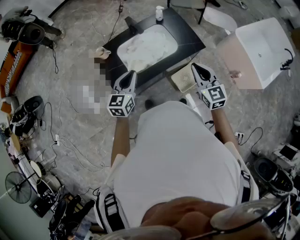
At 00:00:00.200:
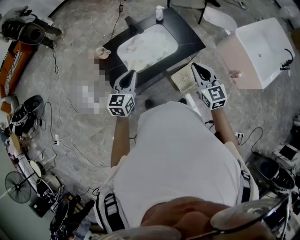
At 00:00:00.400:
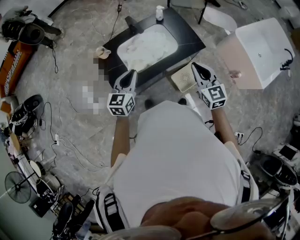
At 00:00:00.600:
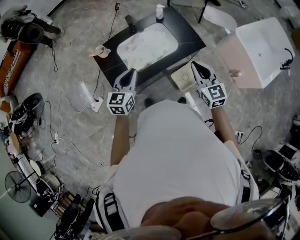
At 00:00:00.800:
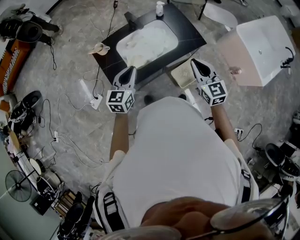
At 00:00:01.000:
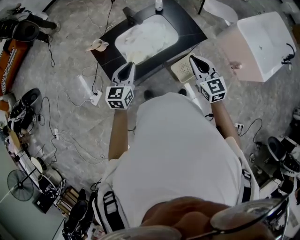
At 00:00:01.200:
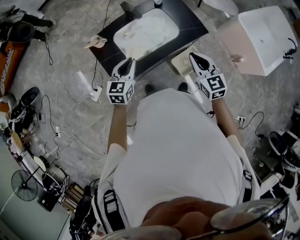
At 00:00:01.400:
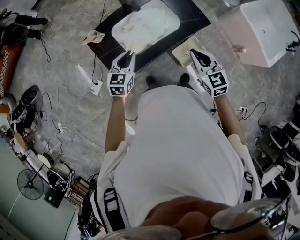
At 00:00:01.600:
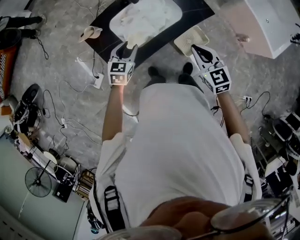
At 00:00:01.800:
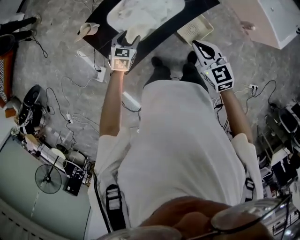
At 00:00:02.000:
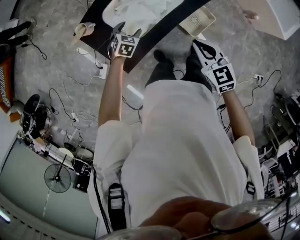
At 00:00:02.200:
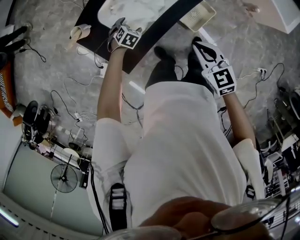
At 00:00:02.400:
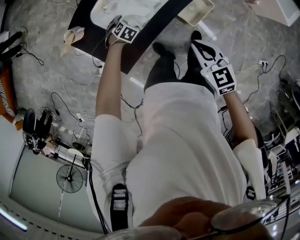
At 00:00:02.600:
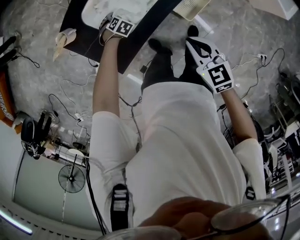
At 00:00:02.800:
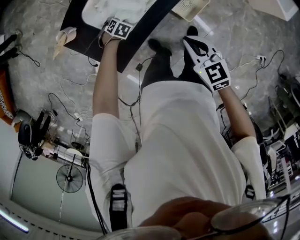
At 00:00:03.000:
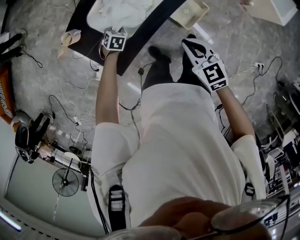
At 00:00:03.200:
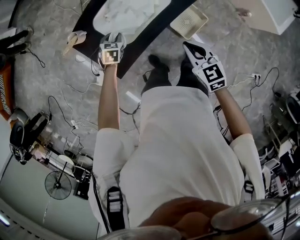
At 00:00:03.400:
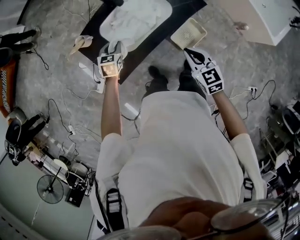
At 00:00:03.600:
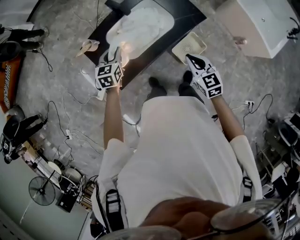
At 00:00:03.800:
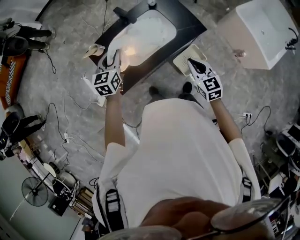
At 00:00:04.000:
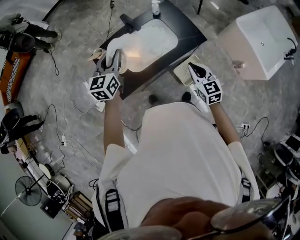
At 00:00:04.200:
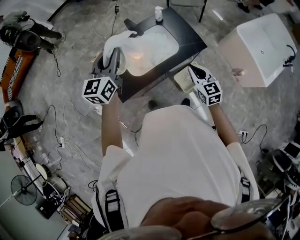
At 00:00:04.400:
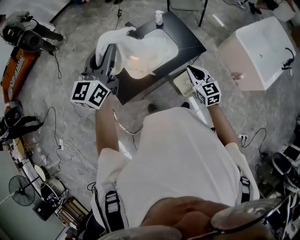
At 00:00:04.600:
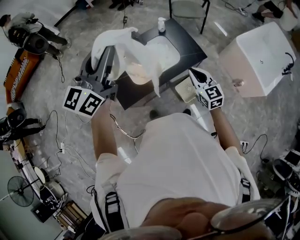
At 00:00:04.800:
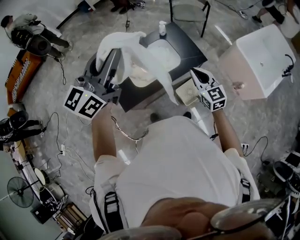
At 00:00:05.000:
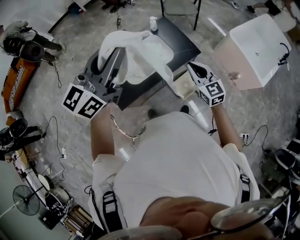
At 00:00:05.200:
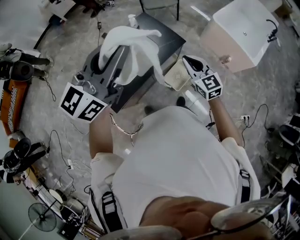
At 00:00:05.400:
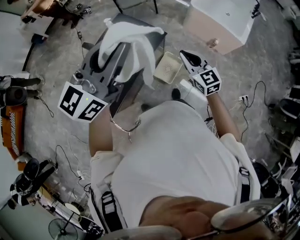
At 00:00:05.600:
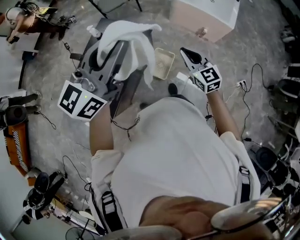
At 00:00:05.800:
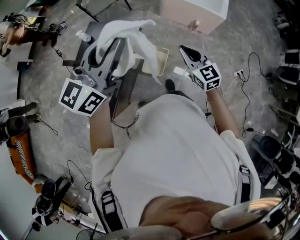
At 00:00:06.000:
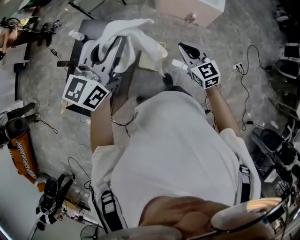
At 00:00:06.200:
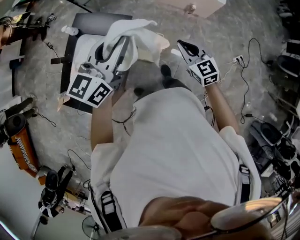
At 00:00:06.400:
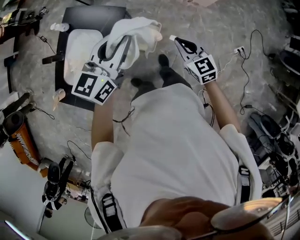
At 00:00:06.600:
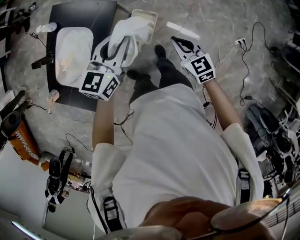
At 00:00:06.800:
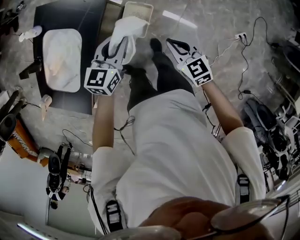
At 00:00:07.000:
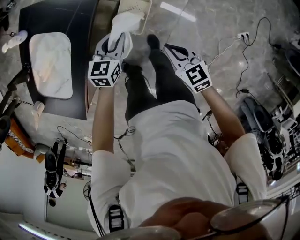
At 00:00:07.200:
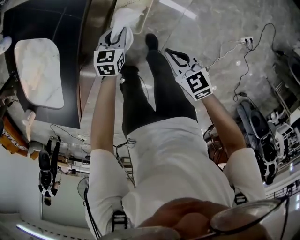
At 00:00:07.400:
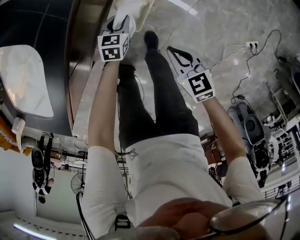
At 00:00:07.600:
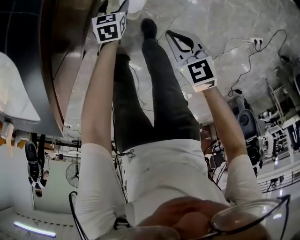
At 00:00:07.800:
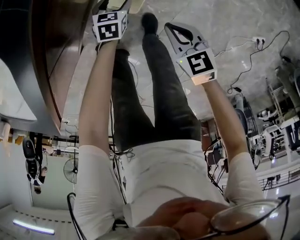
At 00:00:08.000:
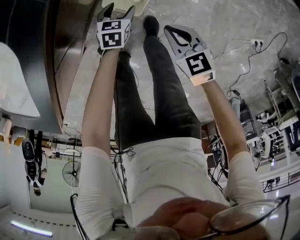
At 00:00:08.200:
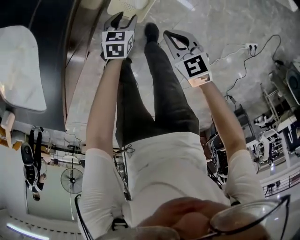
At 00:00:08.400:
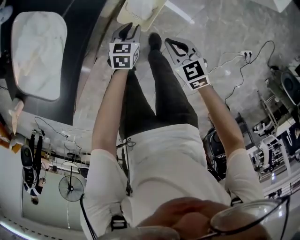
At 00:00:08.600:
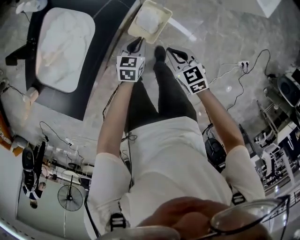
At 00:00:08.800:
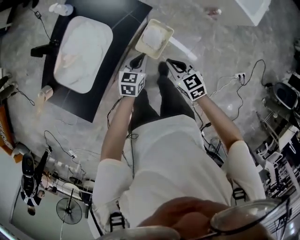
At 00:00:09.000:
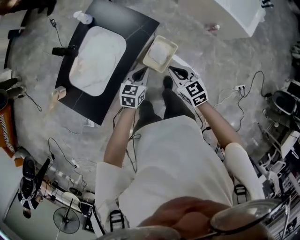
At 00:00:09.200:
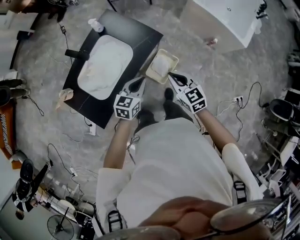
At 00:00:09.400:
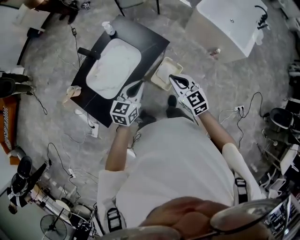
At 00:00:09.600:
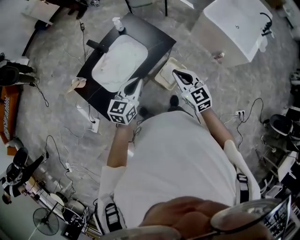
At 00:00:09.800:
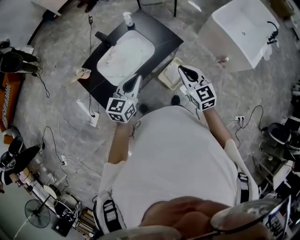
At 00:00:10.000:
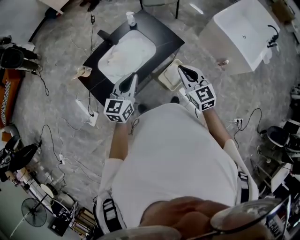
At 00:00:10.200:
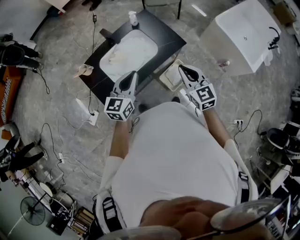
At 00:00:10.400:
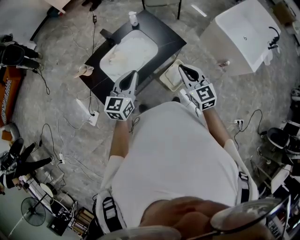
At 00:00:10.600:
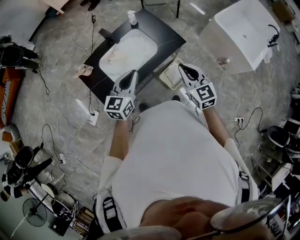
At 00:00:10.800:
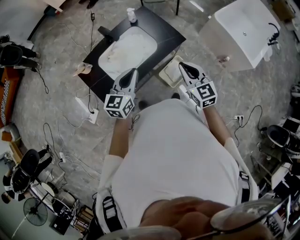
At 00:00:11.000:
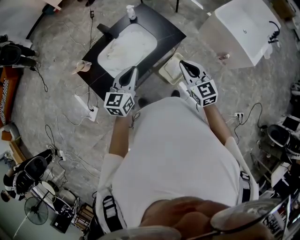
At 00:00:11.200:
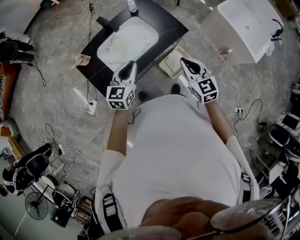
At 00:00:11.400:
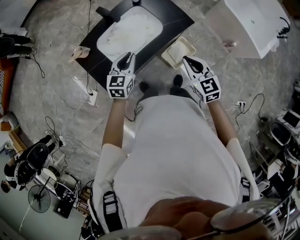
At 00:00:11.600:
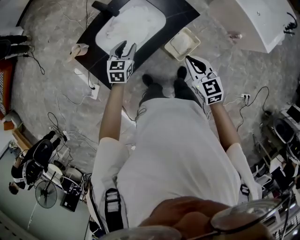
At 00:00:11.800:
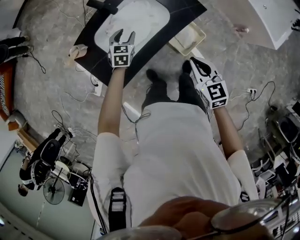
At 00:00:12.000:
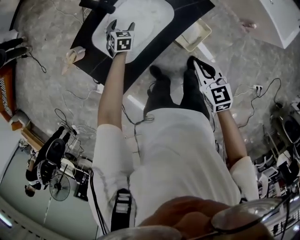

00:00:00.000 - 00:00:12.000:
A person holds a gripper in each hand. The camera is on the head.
00:00:00.000 - 00:00:01.600: The left gripper is displaced downward and forward by roughly 15 cm, and turns by about 20 degrees. The right gripper moves downward and to the left, approximately 10 cm.
00:00:01.600 - 00:00:03.000: The left gripper goes some 25 cm downward, tips its fingers downward by approximately 30 degrees, and opens, then closes once more. The right gripper moves downward, some 10 cm.
00:00:03.000 - 00:00:04.400: The right gripper moves upward and to the right, approximately 15 cm; the left gripper is displaced upward by roughly 60 cm, and angles its fingers upward, by about 70 degrees.
00:00:04.400 - 00:00:06.000: The left gripper reaches about 10 cm upward, then returns, and swivels approximately 50 degrees; the right gripper goes upward and returns, some 10 cm each way, and changes its angle by some 30 degrees.
00:00:06.000 - 00:00:07.600: The left gripper is displaced downward by about 1 m, points its fingers approximately 60 degrees further downward, and opens; the right gripper goes approximately 60 cm downward, and rotates approximately 40 degrees.
00:00:07.600 - 00:00:09.000: Both grippers travel together upward, roughly 40 cm. The left gripper turns by roughly 20 degrees, and closes its fingers.
00:00:09.000 - 00:00:10.400: The grippers both shift upward and to the left by about 30 cm. The left gripper changes its angle by approximately 30 degrees. Meanwhile the right gripper swivels some 20 degrees.
00:00:10.400 - 00:00:12.000: The right gripper is displaced downward by about 20 cm, and turns by some 20 degrees; the left gripper heads downward and forward, covering some 50 cm, points its fingers some 40 degrees further downward, and opens.

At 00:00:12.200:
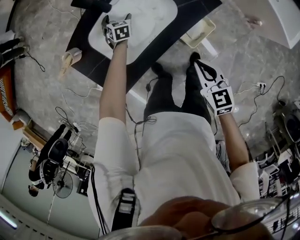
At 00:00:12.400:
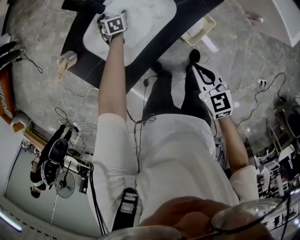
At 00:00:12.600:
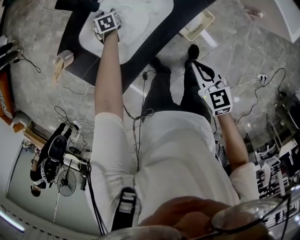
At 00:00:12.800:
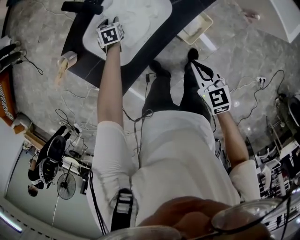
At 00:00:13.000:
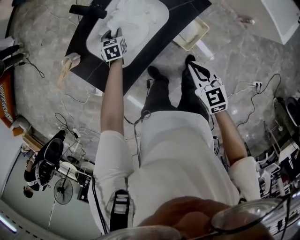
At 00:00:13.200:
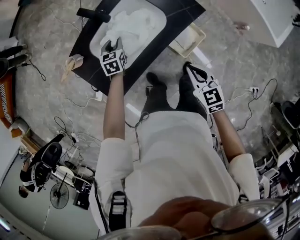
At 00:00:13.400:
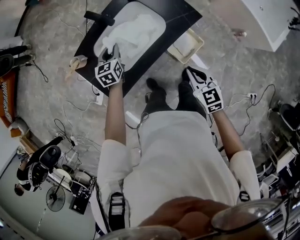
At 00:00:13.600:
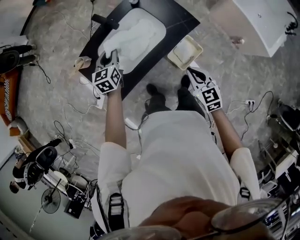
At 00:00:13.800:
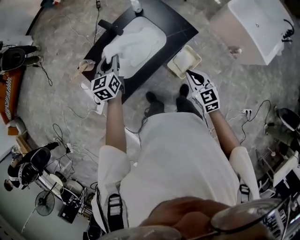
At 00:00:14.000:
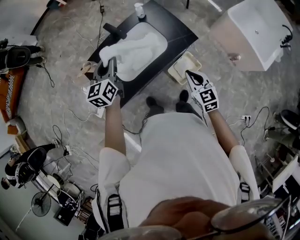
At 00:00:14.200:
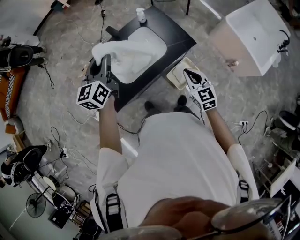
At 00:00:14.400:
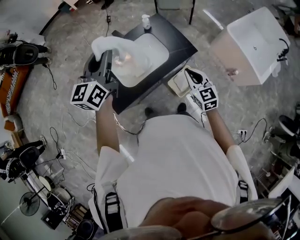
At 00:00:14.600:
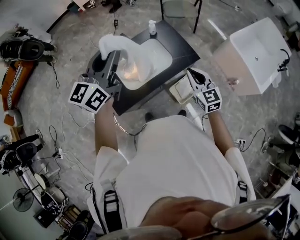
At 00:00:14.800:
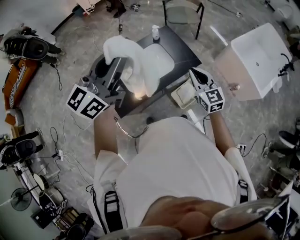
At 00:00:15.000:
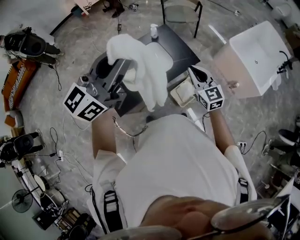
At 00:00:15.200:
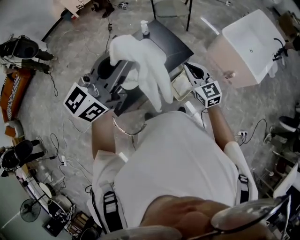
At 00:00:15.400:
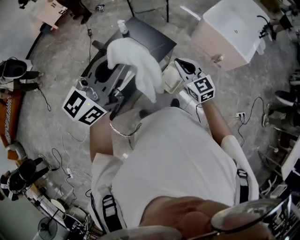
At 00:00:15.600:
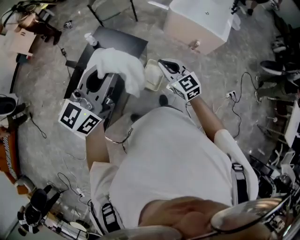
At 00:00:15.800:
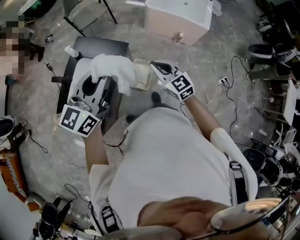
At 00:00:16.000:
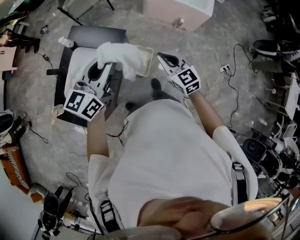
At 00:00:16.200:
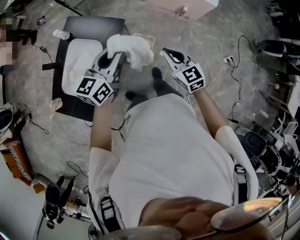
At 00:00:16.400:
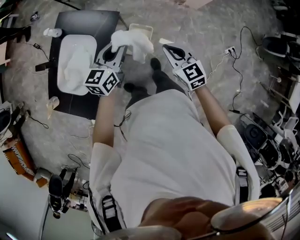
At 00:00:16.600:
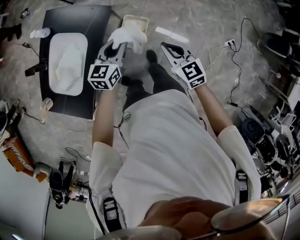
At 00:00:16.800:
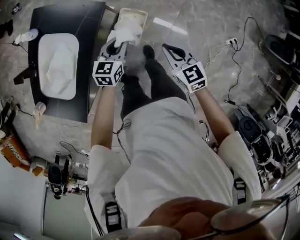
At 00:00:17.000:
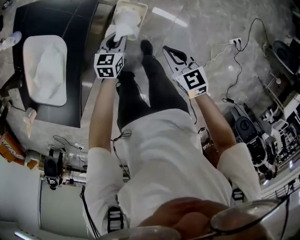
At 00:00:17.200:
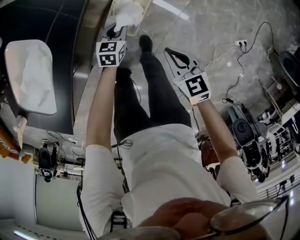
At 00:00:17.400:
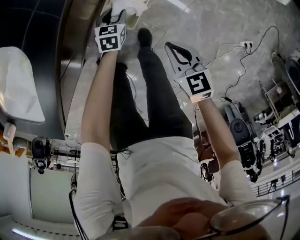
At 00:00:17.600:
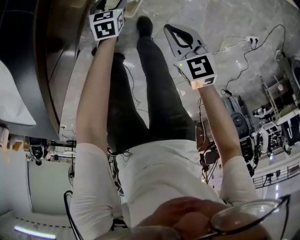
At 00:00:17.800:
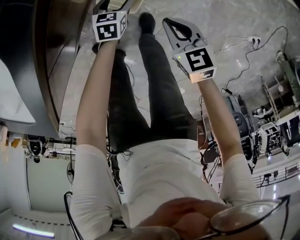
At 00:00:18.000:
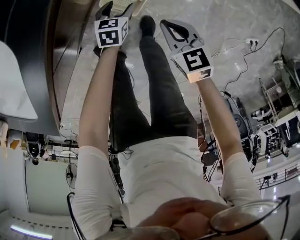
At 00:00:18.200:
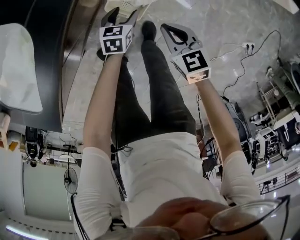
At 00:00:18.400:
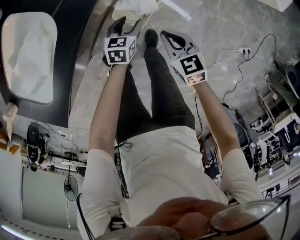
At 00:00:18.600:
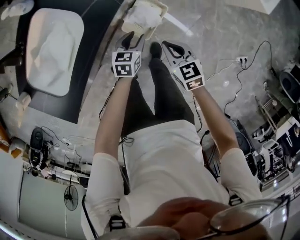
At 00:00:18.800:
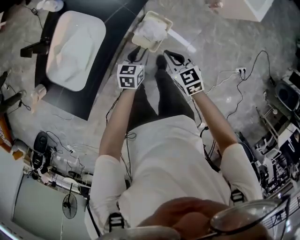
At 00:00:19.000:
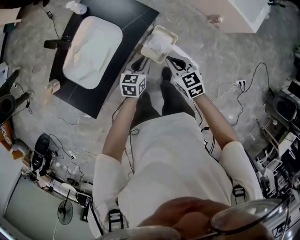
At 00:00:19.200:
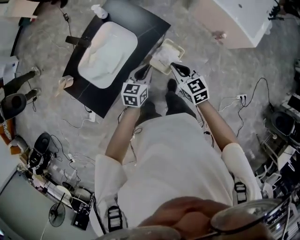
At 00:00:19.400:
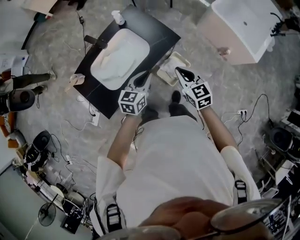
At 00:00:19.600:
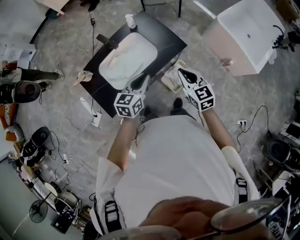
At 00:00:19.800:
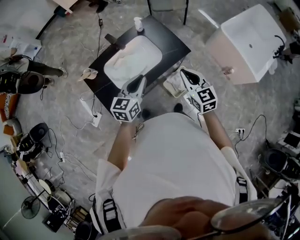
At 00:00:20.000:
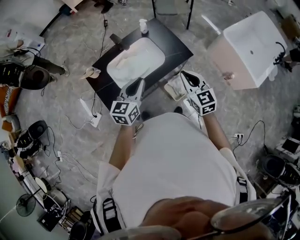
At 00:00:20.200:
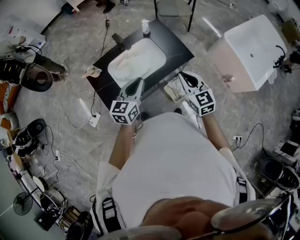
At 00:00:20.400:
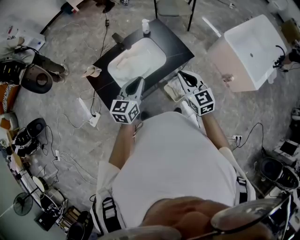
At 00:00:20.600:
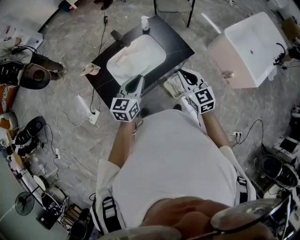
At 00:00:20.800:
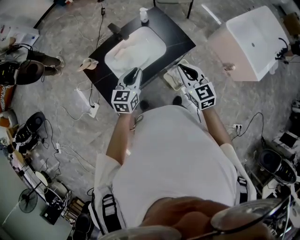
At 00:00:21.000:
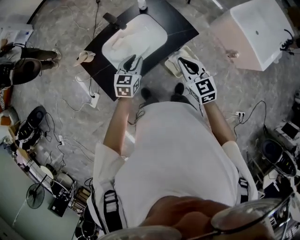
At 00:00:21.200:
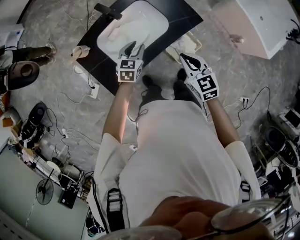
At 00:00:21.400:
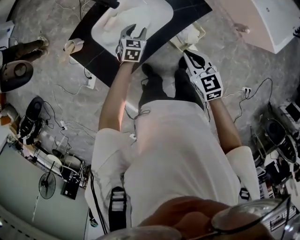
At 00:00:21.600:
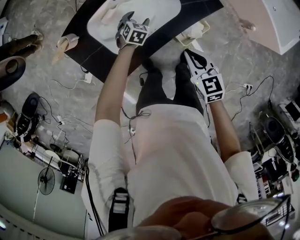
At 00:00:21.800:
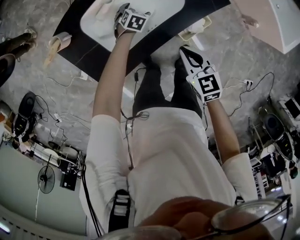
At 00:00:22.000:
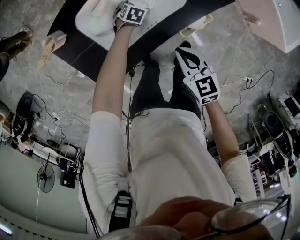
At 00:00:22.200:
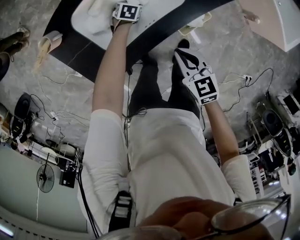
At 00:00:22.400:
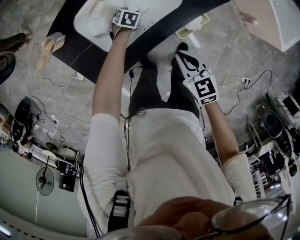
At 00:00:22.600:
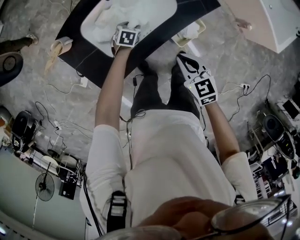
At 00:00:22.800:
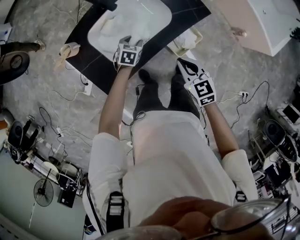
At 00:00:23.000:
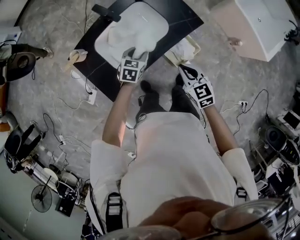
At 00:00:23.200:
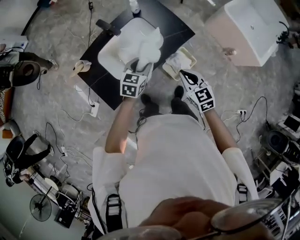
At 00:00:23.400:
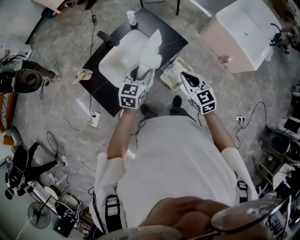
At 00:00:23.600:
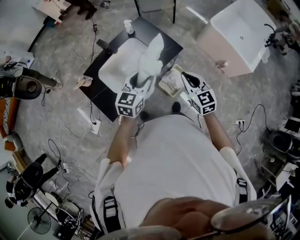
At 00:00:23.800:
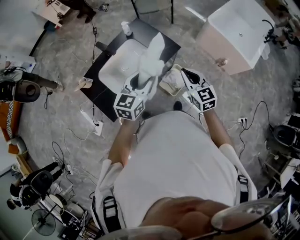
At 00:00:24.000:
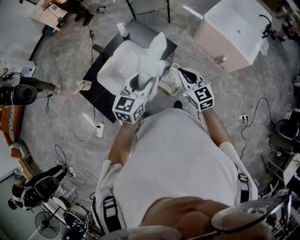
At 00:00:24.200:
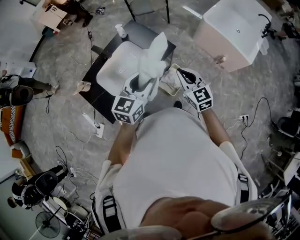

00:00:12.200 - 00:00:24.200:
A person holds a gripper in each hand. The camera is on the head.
00:00:12.200 - 00:00:13.800: The left gripper moves upward and backward, some 40 cm, swivels approximately 40 degrees, and closes its fingers. The right gripper is displaced upward by roughly 10 cm.
00:00:13.800 - 00:00:15.200: The left gripper travels upward and backward by about 40 cm, and tilts its fingers some 30 degrees upward. The right gripper shifts roughly 15 cm upward.
00:00:15.200 - 00:00:16.600: The left gripper shifts about 50 cm downward and to the right, and tilts its fingers roughly 30 degrees downward. Meanwhile the right gripper is displaced to the right and downward by about 35 cm, and turns by about 30 degrees.
00:00:16.600 - 00:00:18.200: Both grippers travel together downward, roughly 50 cm. The right gripper rotates approximately 20 degrees, while the left gripper rotates approximately 30 degrees, and opens its fingers.
00:00:18.200 - 00:00:19.800: Both grippers travel together upward, some 60 cm. The right gripper swivels some 40 degrees. Meanwhile the left gripper points its fingers some 30 degrees further upward, and closes its fingers.
00:00:19.800 - 00:00:21.200: The right gripper shifts roughly 15 cm downward and to the left, while the left gripper heads downward and forward, covering about 25 cm, and rotates some 20 degrees.
00:00:21.200 - 00:00:22.600: The right gripper goes about 15 cm downward. The left gripper moves downward, roughly 25 cm, changes its angle by some 20 degrees, and opens, then closes again.
00:00:22.600 - 00:00:24.200: The right gripper travels upward and to the right by approximately 30 cm, and changes its angle by about 30 degrees; the left gripper goes roughly 60 cm upward and to the right, and angles its fingers upward, by roughly 50 degrees.
